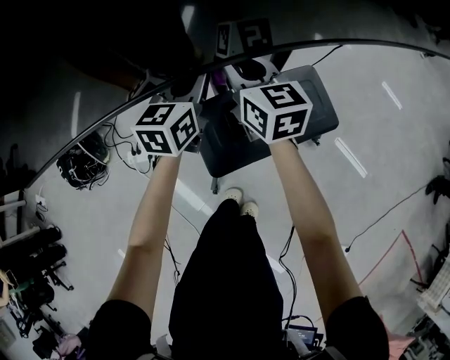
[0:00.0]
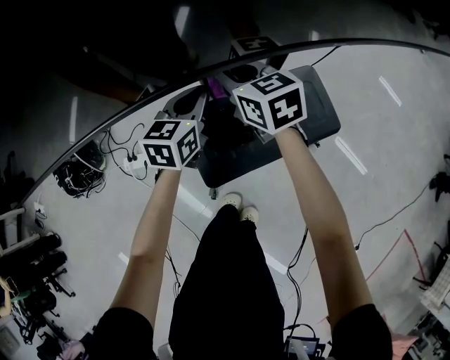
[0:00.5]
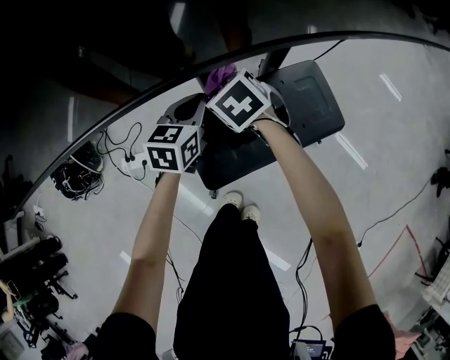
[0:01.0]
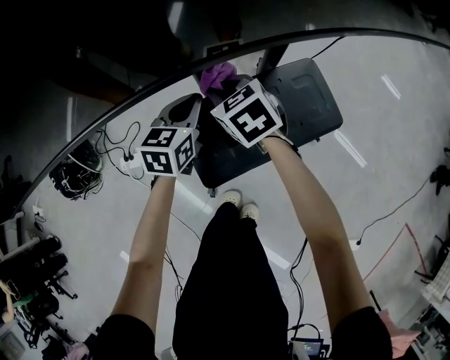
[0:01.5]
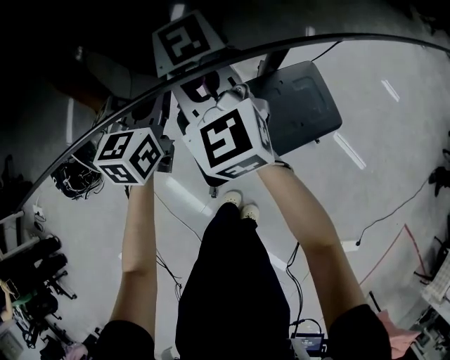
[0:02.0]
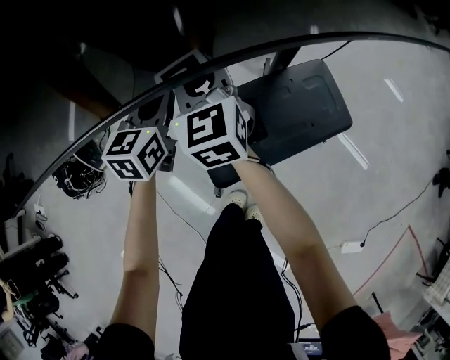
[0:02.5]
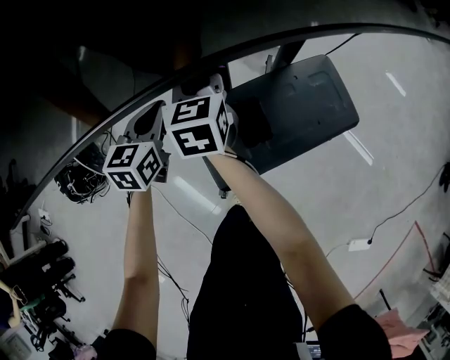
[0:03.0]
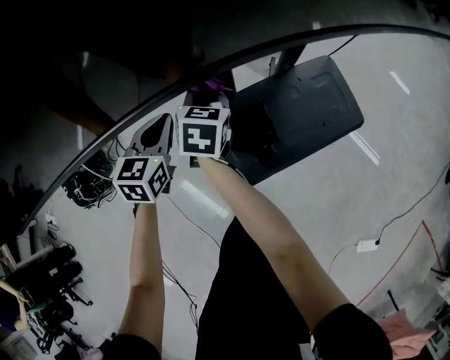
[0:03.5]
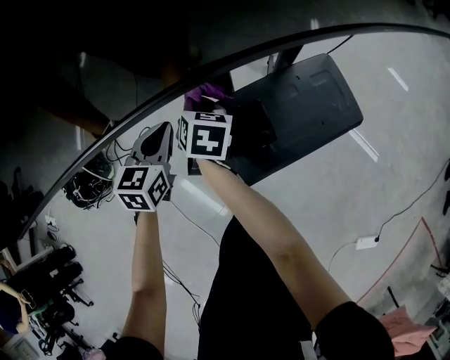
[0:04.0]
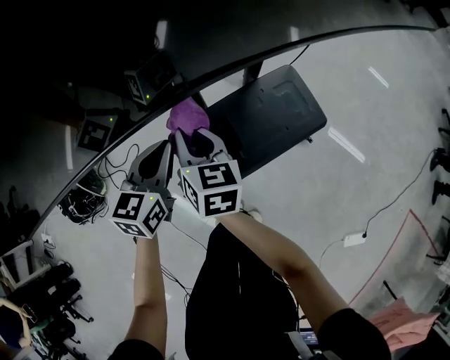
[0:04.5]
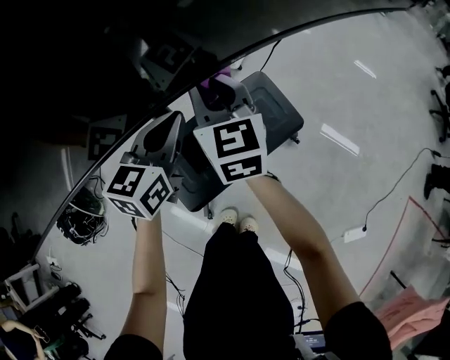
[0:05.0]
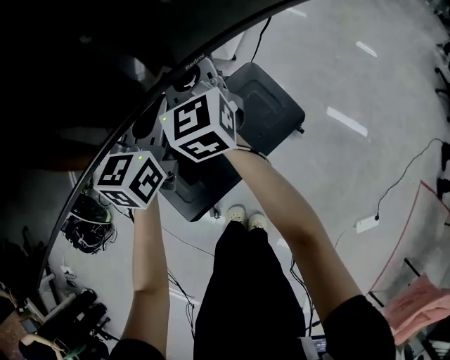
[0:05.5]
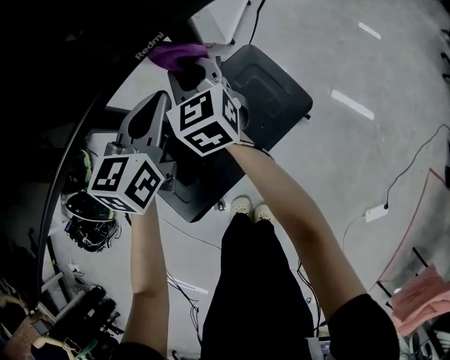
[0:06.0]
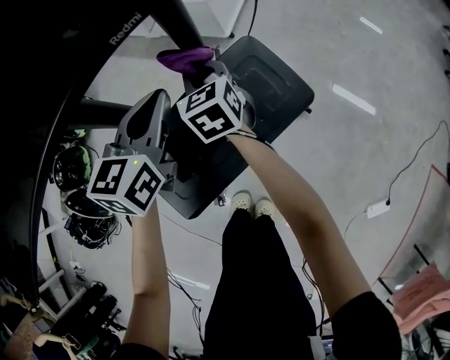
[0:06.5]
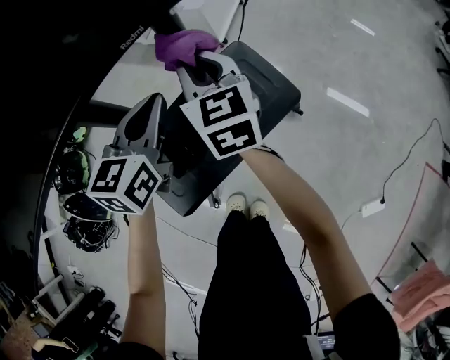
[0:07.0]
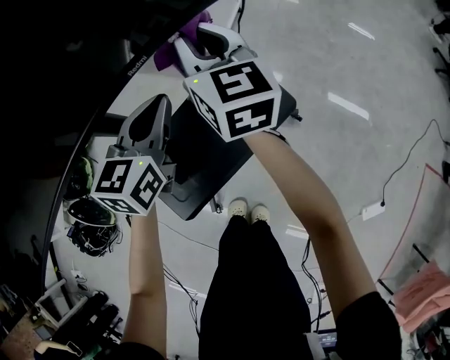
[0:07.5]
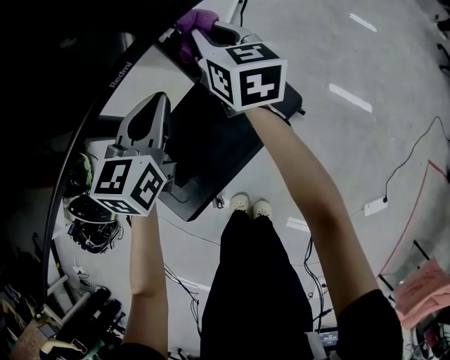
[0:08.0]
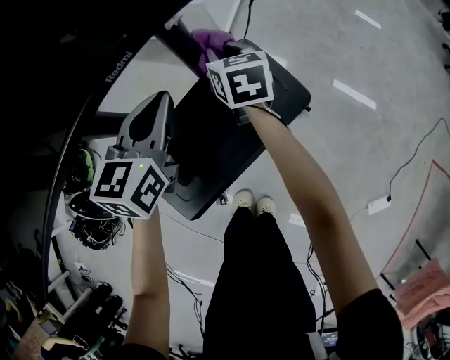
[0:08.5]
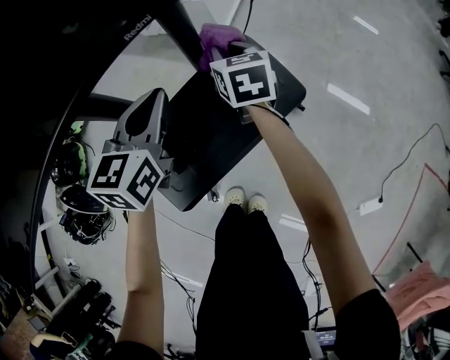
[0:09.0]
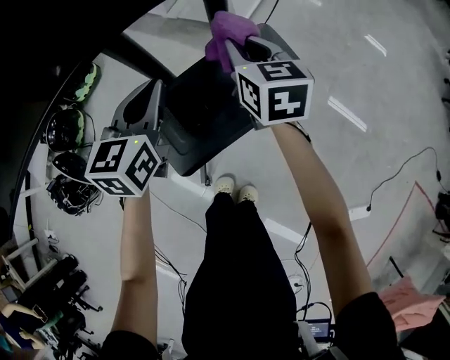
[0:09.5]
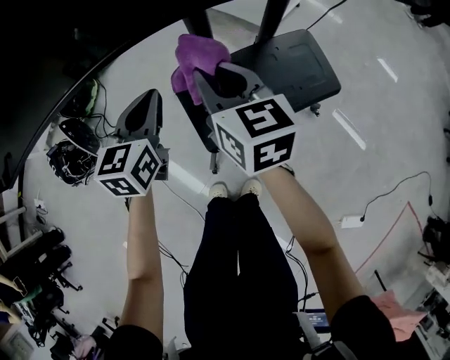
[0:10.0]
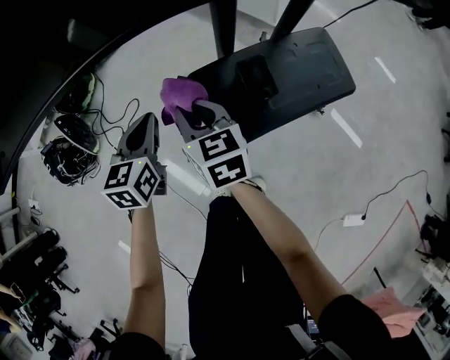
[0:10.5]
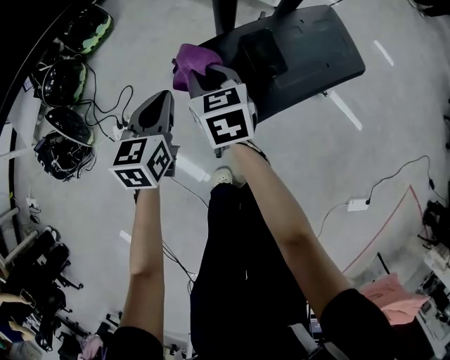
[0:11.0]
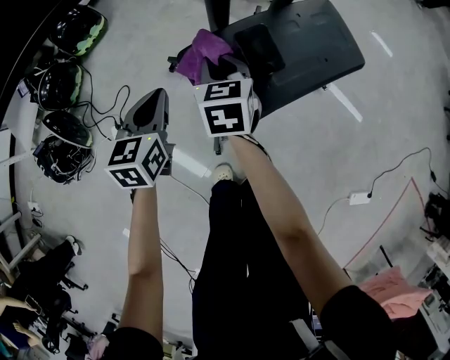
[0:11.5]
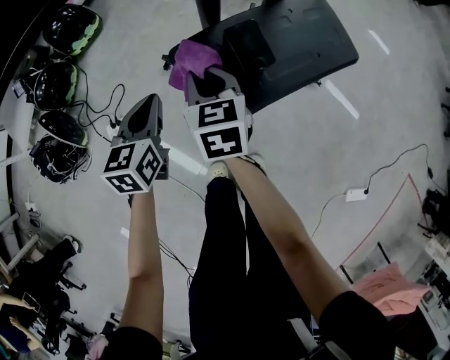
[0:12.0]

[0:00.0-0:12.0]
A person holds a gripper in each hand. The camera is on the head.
0:00.0 to 0:02.0: Both grippers move to the left, roughly 5 cm. The right gripper goes downward and returns, roughly 15 cm each way, and swivels roughly 30 degrees. The left gripper reaches some 15 cm downward, then returns.
0:02.0 to 0:04.0: The right gripper travels downward by roughly 25 cm, and rotates around the line of its fingers by approximately 60 degrees, clockwise from behind. Meanwhile the left gripper heads downward and to the left, covering approximately 15 cm.
0:04.0 to 0:06.0: The right gripper travels to the right, forward and upward by some 25 cm, and changes its angle by approximately 40 degrees. The left gripper travels to the right and forward by about 25 cm.
0:06.0 to 0:08.0: The right gripper moves up and down over about 20 cm, changing direction 2 times, and swivels about 20 degrees.
0:08.0 to 0:10.0: The right gripper shifts some 35 cm backward and to the left, and rotates approximately 20 degrees. Meanwhile the left gripper heads to the left and backward, covering some 30 cm, and swivels roughly 20 degrees.
0:10.0 to 0:12.0: The grippers both shift downward by some 15 cm.

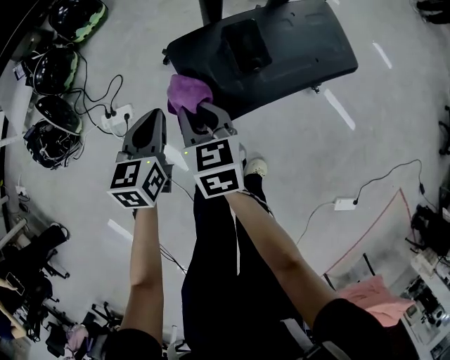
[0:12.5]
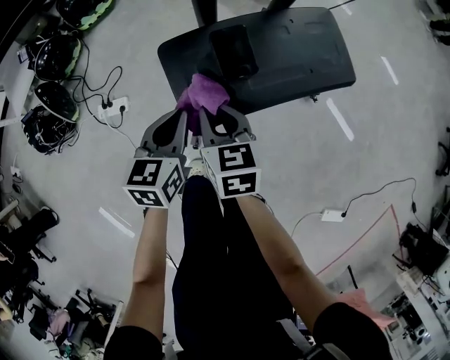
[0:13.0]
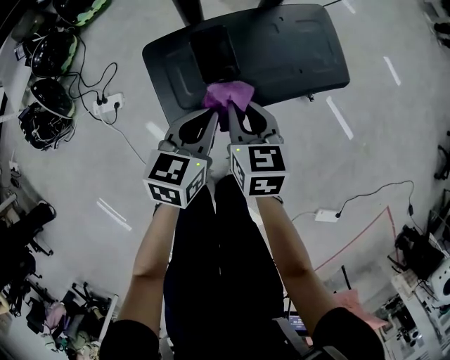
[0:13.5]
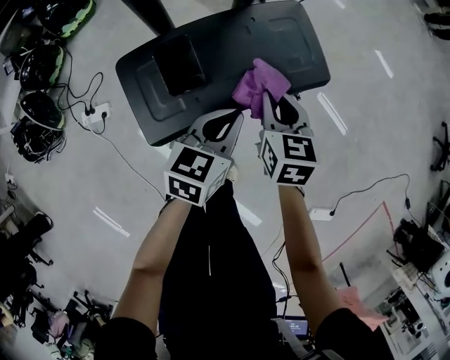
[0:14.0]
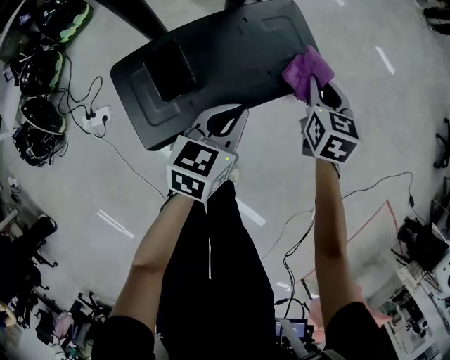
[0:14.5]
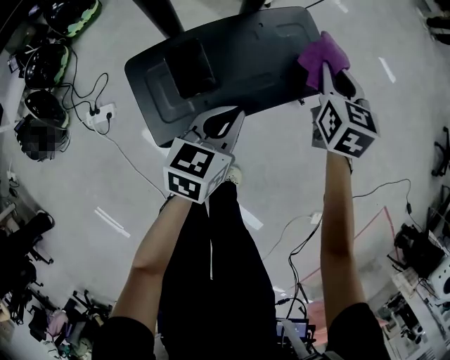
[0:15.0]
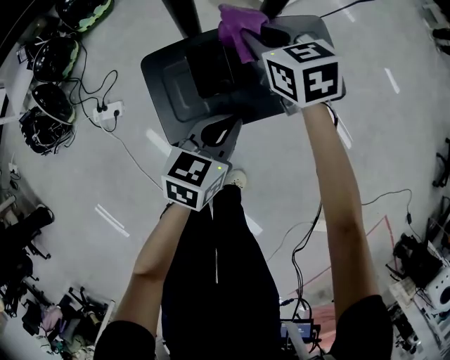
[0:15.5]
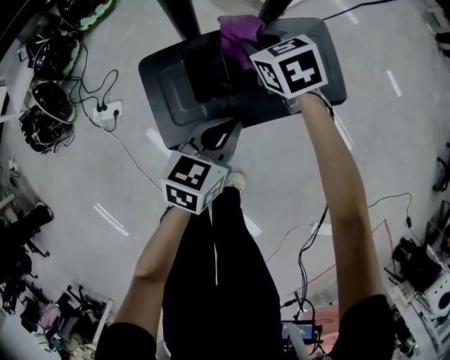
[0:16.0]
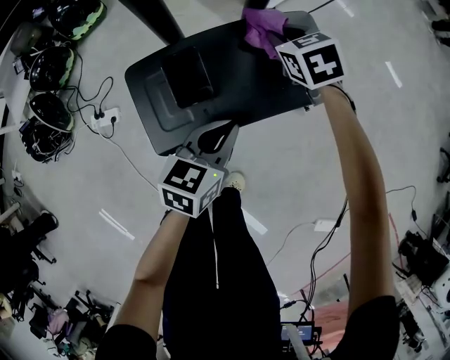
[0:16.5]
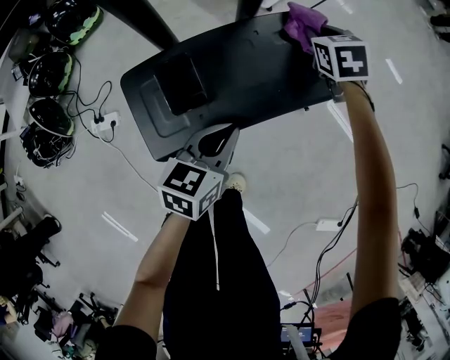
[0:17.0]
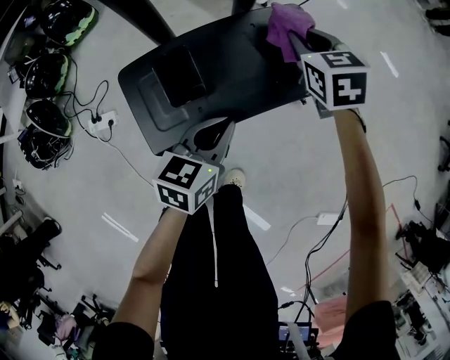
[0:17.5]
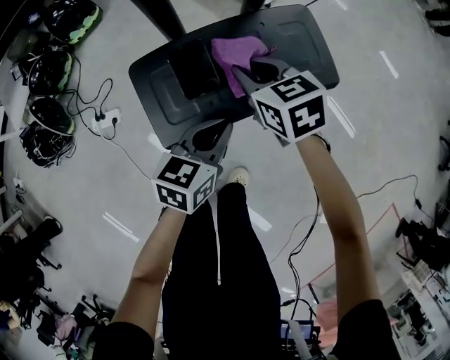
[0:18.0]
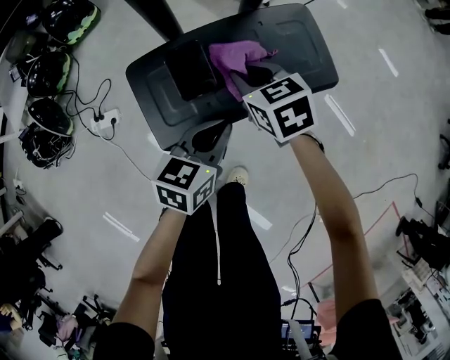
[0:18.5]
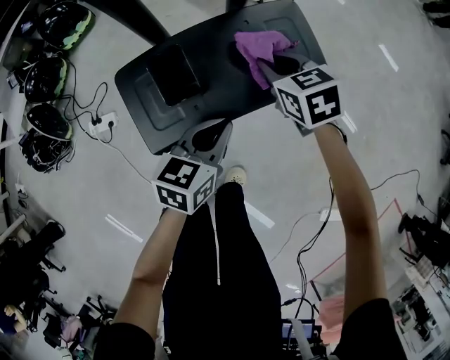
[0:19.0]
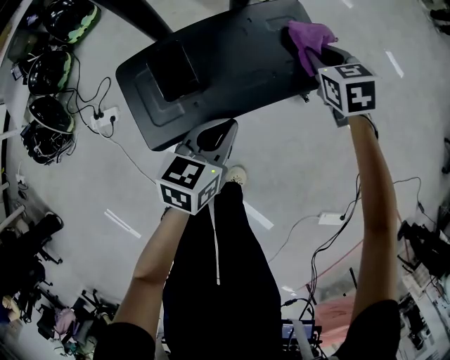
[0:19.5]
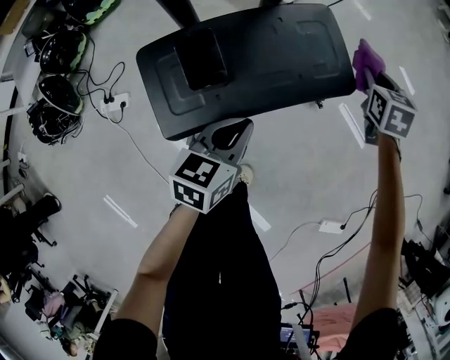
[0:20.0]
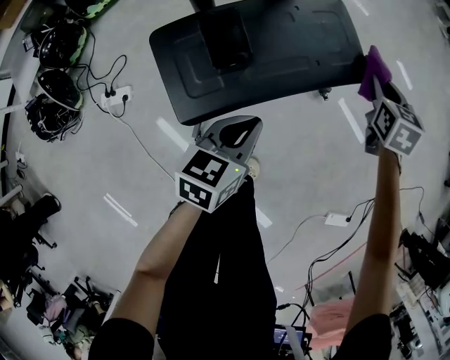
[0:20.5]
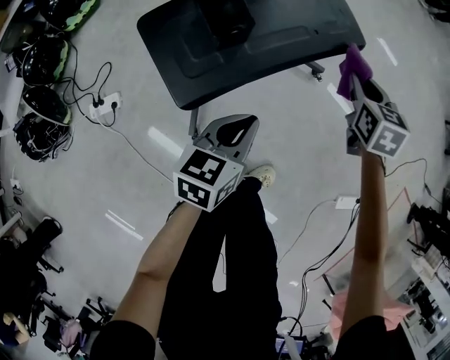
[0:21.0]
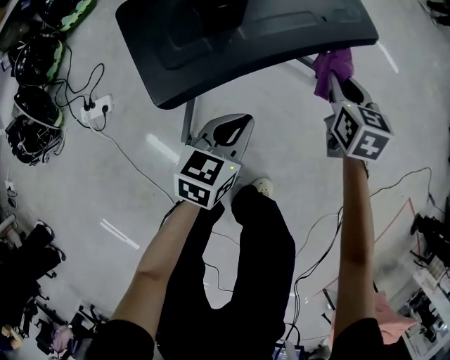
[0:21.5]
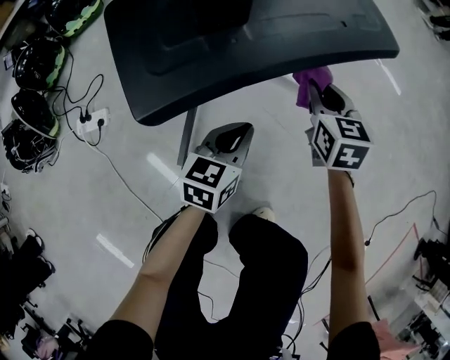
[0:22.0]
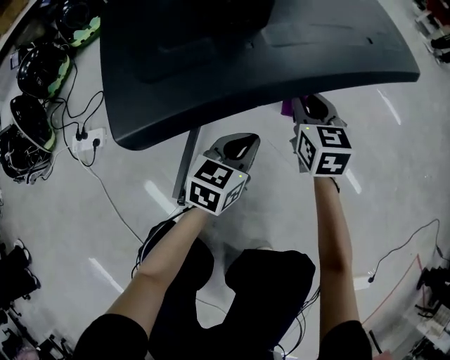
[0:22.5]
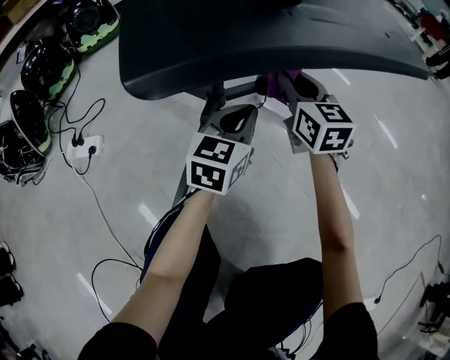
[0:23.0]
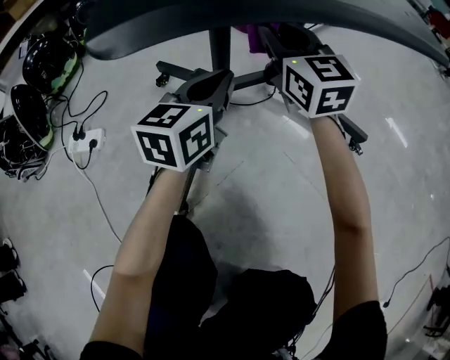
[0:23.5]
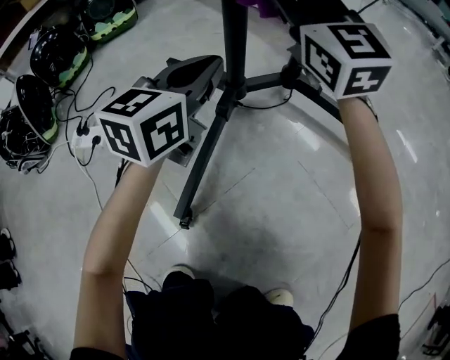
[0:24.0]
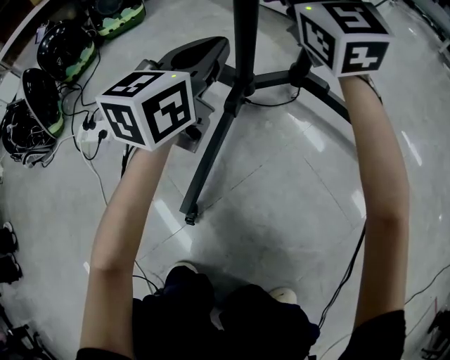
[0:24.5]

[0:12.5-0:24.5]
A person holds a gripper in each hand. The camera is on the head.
0:12.5 to 0:14.5: The right gripper moves about 50 cm, and swivels approximately 30 degrees. The left gripper shifts by roughly 35 cm, and rotates approximately 20 degrees.
0:14.5 to 0:16.5: The right gripper moves some 20 cm, and swivels about 40 degrees.
0:16.5 to 0:18.5: The right gripper shifts about 15 cm backward and to the left.
0:18.5 to 0:20.5: The right gripper moves about 25 cm, and rotates some 40 degrees.
0:20.5 to 0:22.5: The left gripper is displaced downward by some 30 cm; the right gripper is displaced downward and to the left by approximately 35 cm, and turns by roughly 20 degrees.
0:22.5 to 0:24.5: The left gripper shifts approximately 20 cm to the left and forward, and swivels approximately 20 degrees; the right gripper heads to the left, upward and forward, covering about 25 cm, and angles its fingers upward, by about 30 degrees.

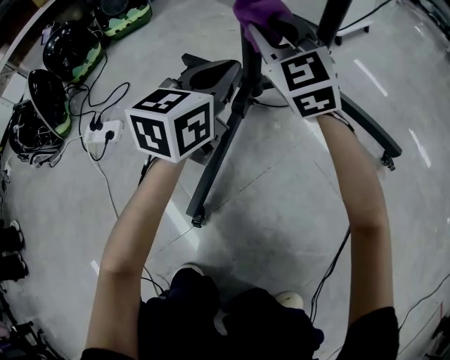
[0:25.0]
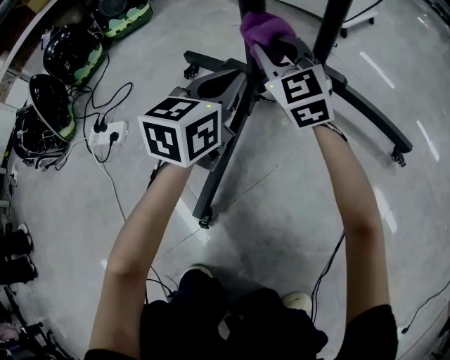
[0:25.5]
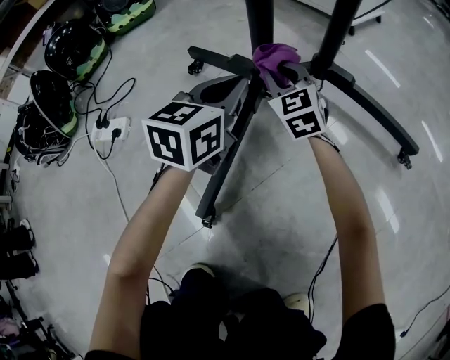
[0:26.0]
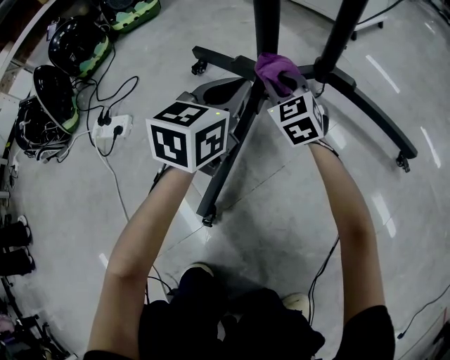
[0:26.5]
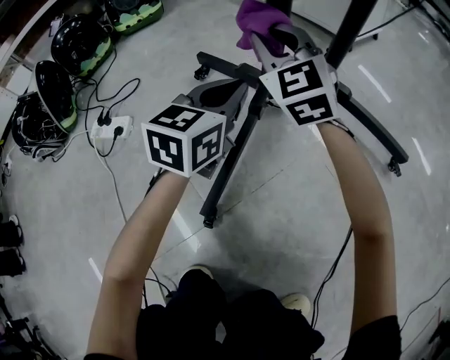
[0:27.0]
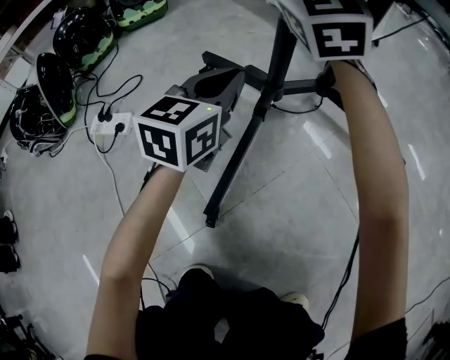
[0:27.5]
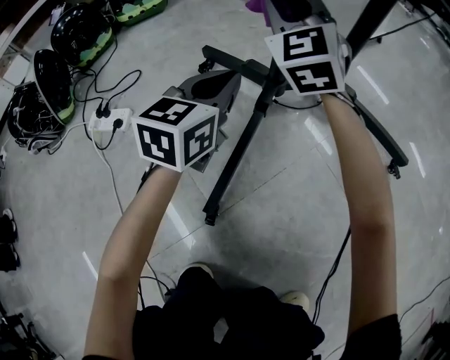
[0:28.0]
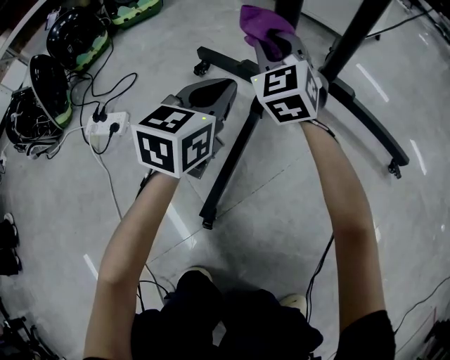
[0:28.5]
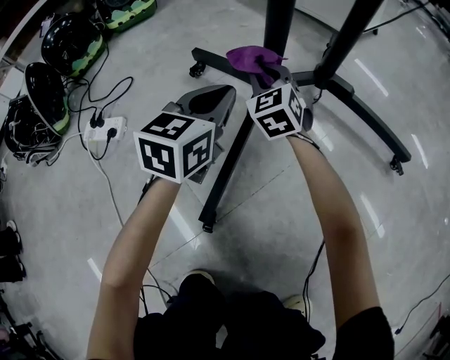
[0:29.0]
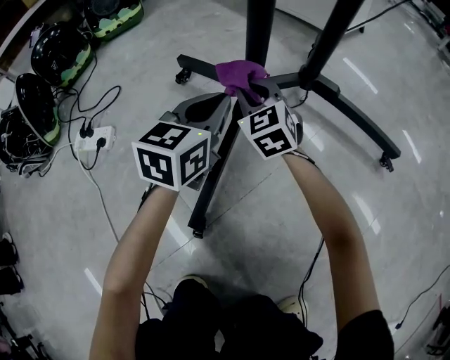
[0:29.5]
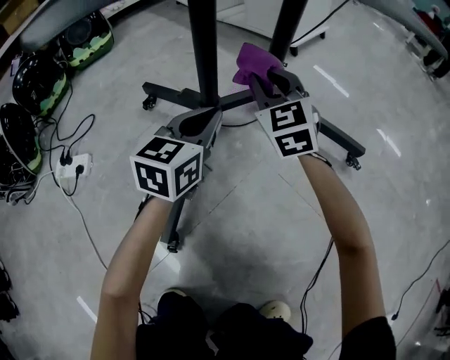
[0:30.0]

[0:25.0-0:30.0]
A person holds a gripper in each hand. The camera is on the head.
0:25.0 to 0:27.5: The right gripper shifts roughly 15 cm upward and to the left, while the left gripper heads to the left, covering approximately 5 cm.
0:27.5 to 0:30.0: The left gripper is displaced to the right by about 10 cm; the right gripper heads downward and to the right, covering approximately 25 cm, and rotates approximately 30 degrees.
